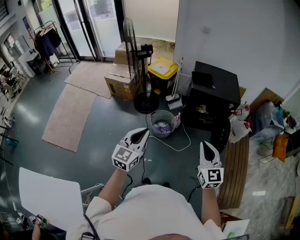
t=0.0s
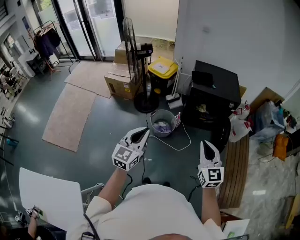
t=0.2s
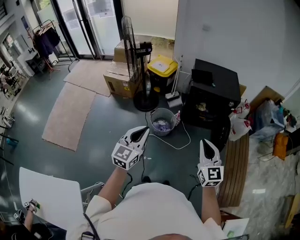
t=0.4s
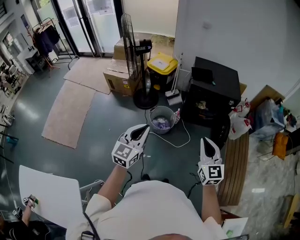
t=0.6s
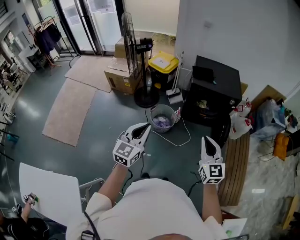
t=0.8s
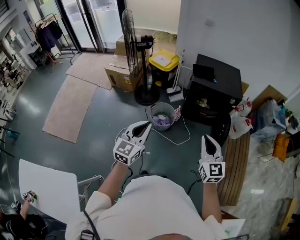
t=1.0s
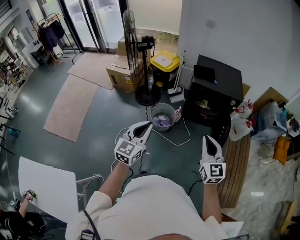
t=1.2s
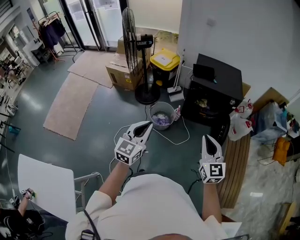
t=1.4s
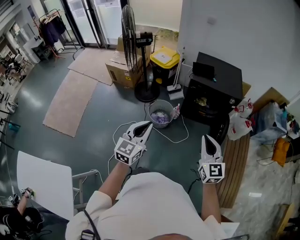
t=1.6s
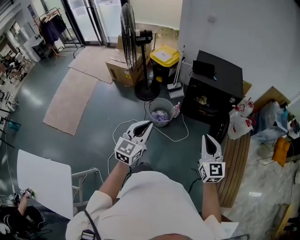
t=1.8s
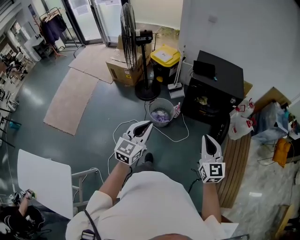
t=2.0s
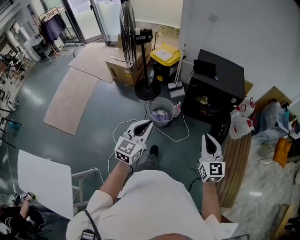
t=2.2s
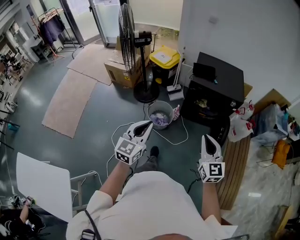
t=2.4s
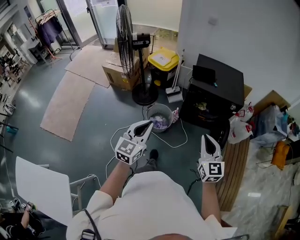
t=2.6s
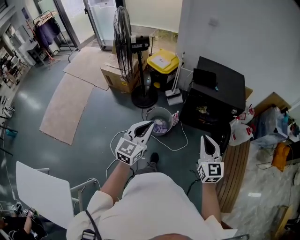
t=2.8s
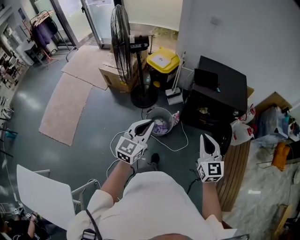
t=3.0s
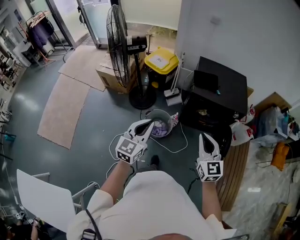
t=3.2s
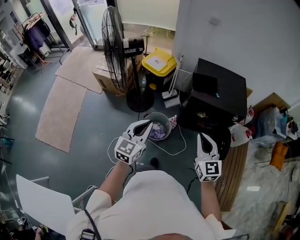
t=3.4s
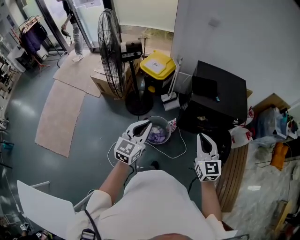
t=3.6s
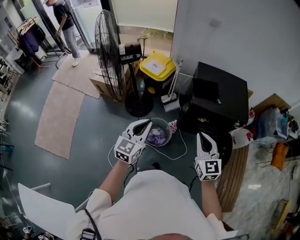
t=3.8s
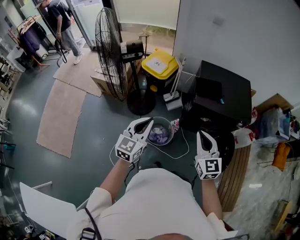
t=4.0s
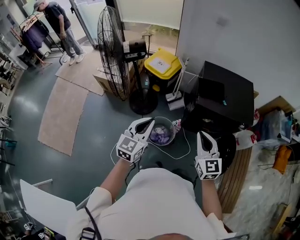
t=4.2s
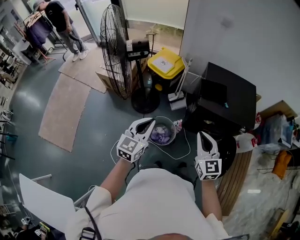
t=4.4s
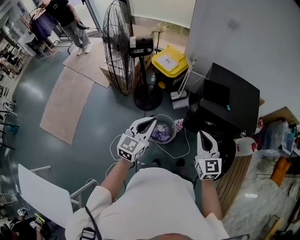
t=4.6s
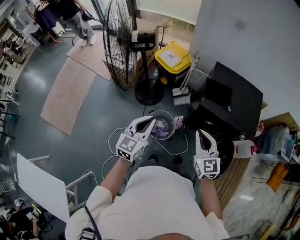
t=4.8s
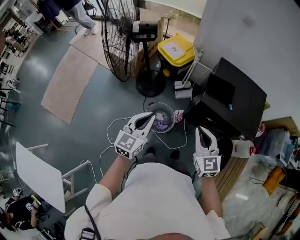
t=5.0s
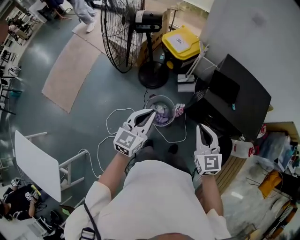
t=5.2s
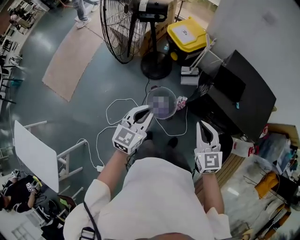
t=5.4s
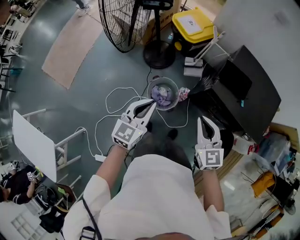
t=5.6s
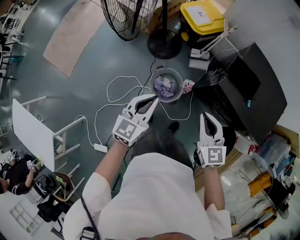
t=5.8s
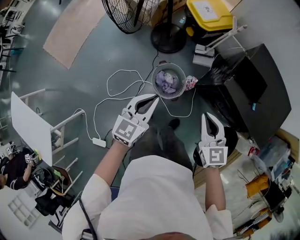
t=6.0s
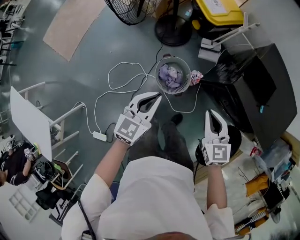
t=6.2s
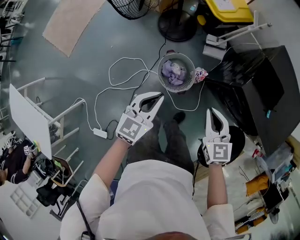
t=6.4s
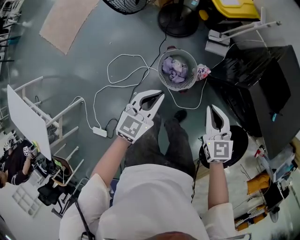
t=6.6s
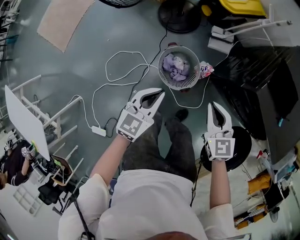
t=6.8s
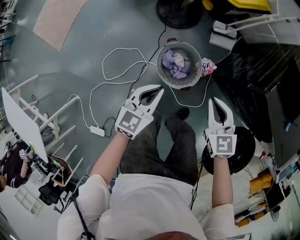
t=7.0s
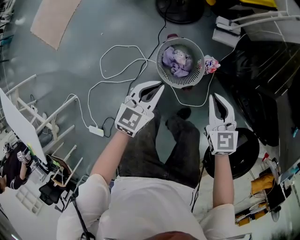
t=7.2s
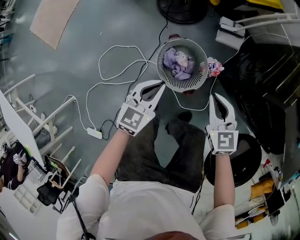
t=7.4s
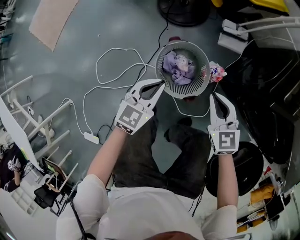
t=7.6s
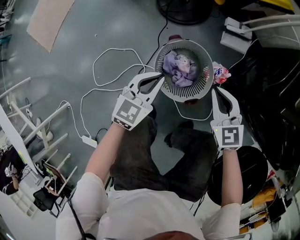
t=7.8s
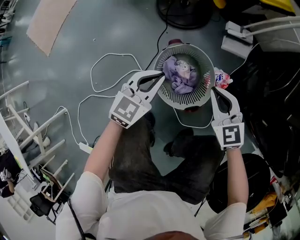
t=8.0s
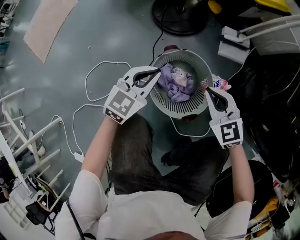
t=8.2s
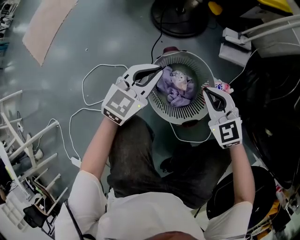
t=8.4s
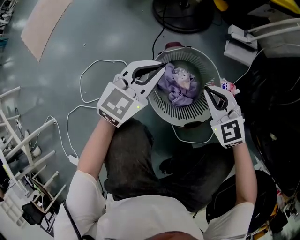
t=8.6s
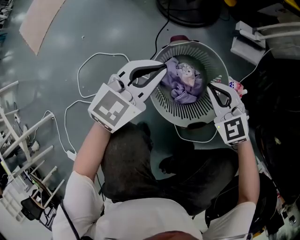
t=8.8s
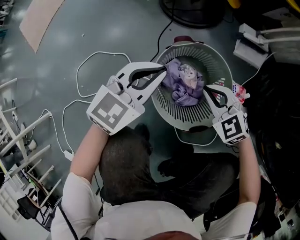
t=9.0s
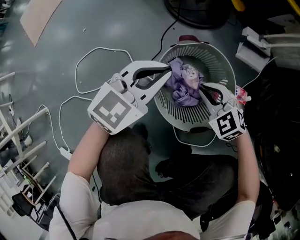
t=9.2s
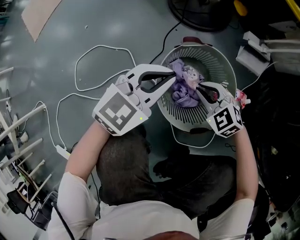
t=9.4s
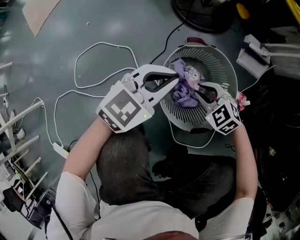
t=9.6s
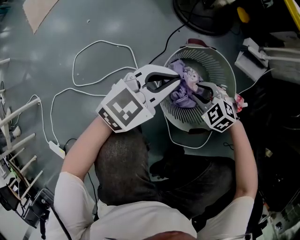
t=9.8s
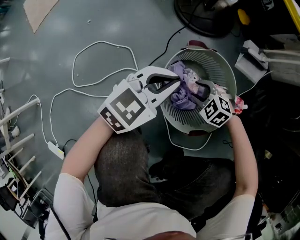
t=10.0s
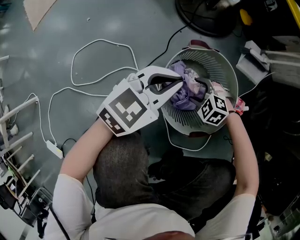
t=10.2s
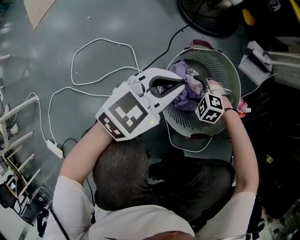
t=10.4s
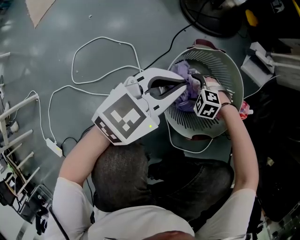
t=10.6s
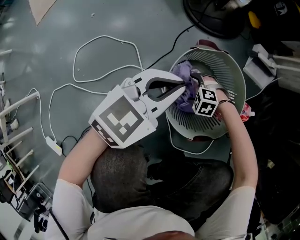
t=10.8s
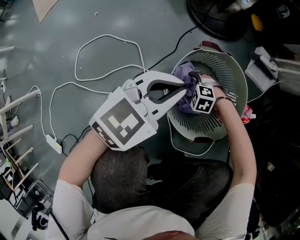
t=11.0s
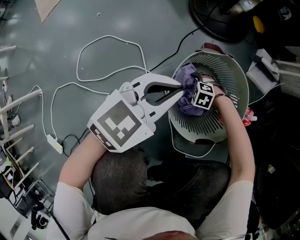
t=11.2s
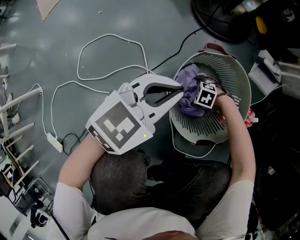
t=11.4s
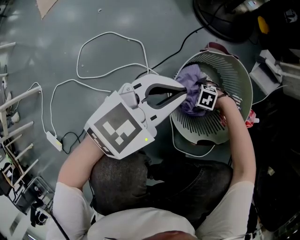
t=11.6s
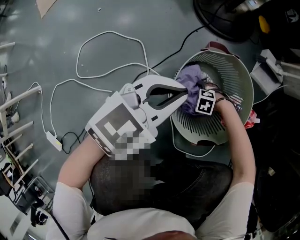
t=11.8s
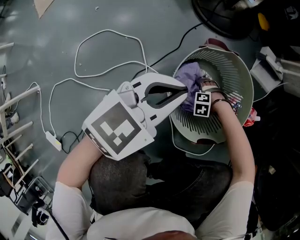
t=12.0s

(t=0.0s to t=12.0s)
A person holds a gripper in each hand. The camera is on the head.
t=0.0s - t=1.6s: Both grippers travel together to the right, approximately 10 cm.
t=1.6s - t=3.0s: The two grippers go roughly 20 cm forward.
t=3.0s - t=4.4s: The two grippers go roughly 20 cm forward.
t=4.4s - t=6.0s: The grippers both shift downward by approximately 15 cm. The left gripper rotates roughly 20 degrees; the right gripper swivels some 30 degrees.
t=6.0s - t=7.6s: Both grippers move downward, some 40 cm.
t=7.6s - t=9.0s: The left gripper shifts about 15 cm downward; the right gripper is displaced downward by about 25 cm, and swivels some 30 degrees.
t=9.0s - t=10.4s: The right gripper goes some 20 cm downward, rotates roughly 40 degrees, and opens.
t=10.4s - t=12.0s: The right gripper goes approximately 15 cm downward, and rotates about 30 degrees.

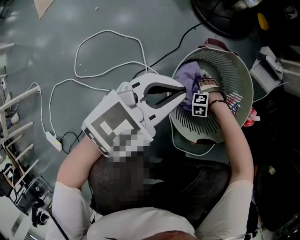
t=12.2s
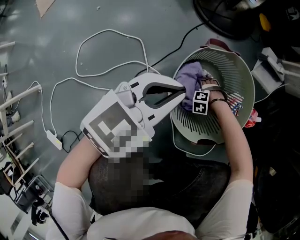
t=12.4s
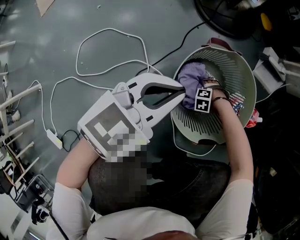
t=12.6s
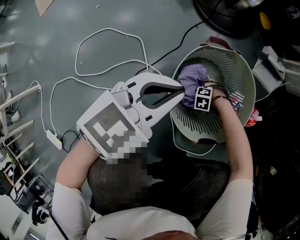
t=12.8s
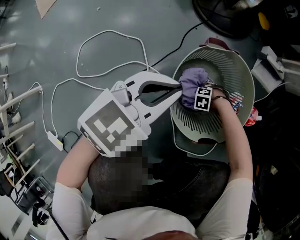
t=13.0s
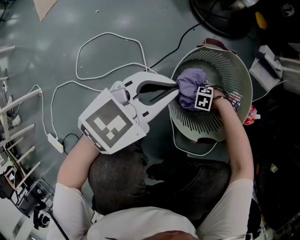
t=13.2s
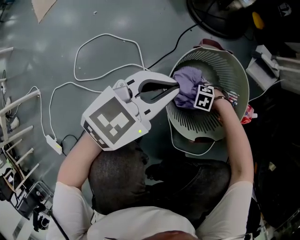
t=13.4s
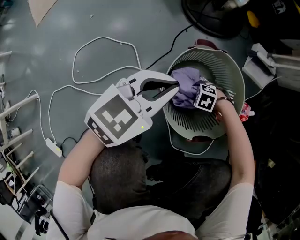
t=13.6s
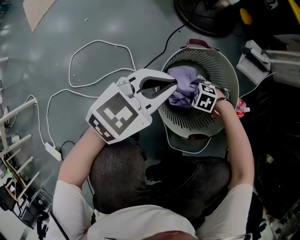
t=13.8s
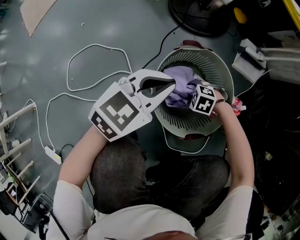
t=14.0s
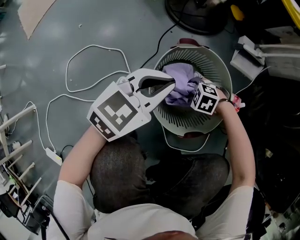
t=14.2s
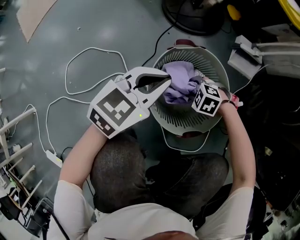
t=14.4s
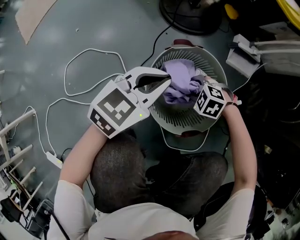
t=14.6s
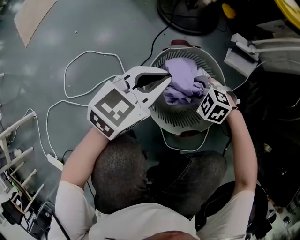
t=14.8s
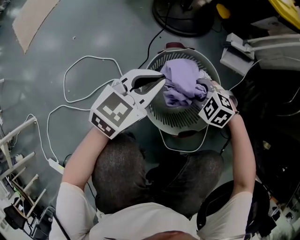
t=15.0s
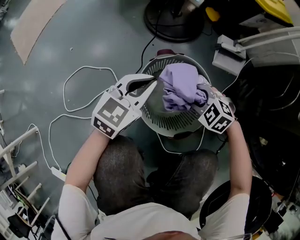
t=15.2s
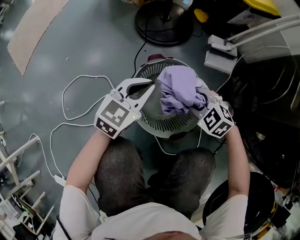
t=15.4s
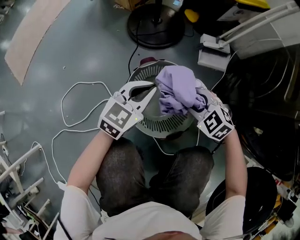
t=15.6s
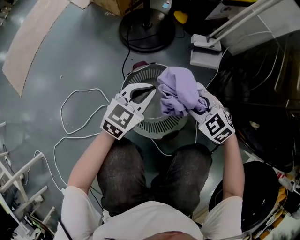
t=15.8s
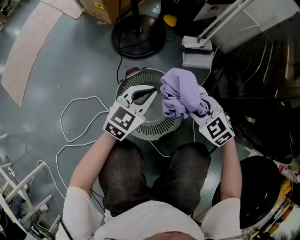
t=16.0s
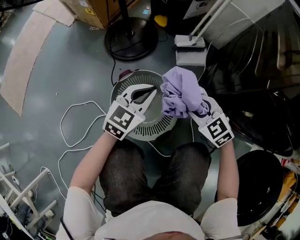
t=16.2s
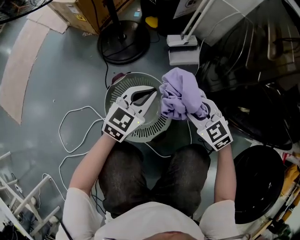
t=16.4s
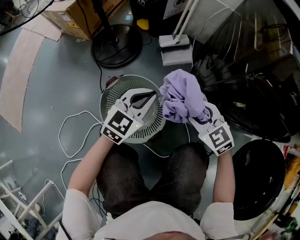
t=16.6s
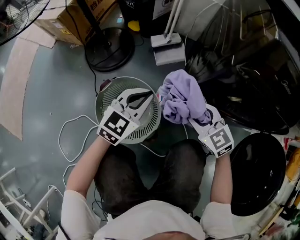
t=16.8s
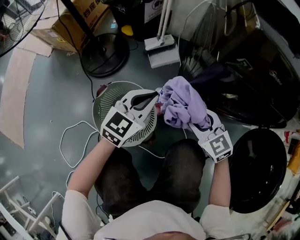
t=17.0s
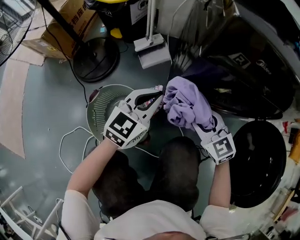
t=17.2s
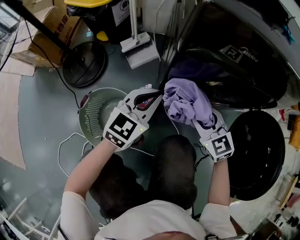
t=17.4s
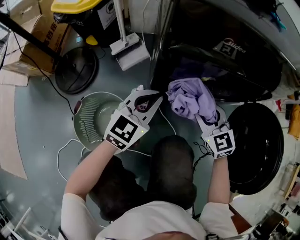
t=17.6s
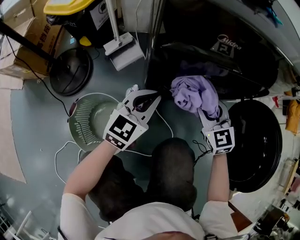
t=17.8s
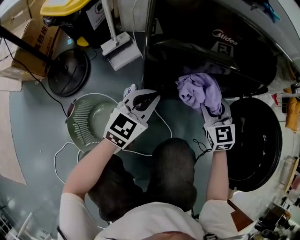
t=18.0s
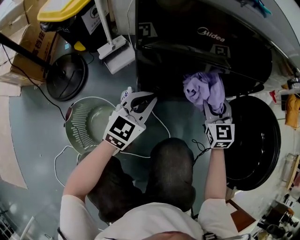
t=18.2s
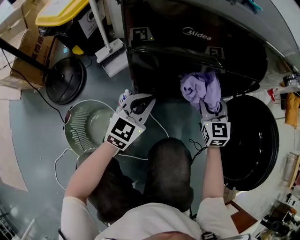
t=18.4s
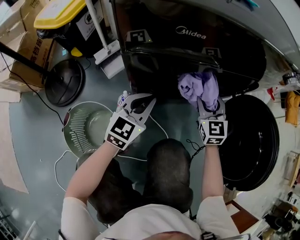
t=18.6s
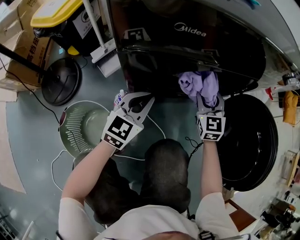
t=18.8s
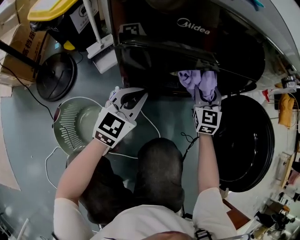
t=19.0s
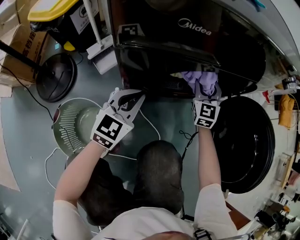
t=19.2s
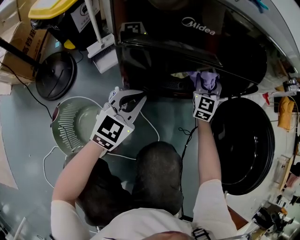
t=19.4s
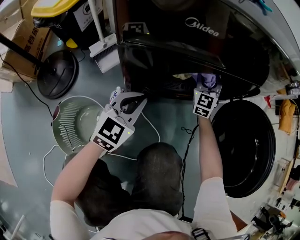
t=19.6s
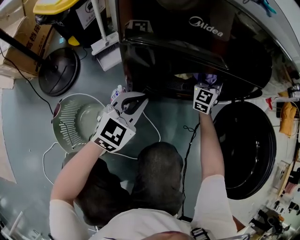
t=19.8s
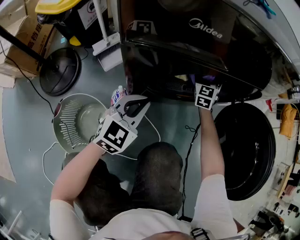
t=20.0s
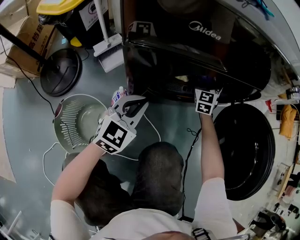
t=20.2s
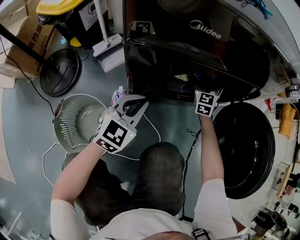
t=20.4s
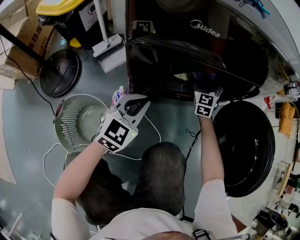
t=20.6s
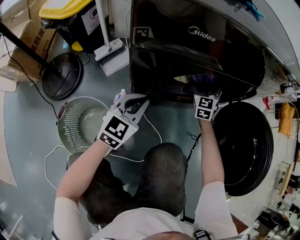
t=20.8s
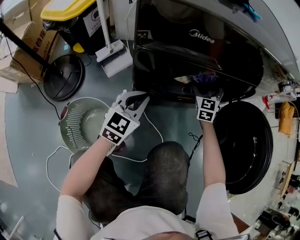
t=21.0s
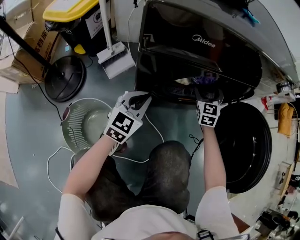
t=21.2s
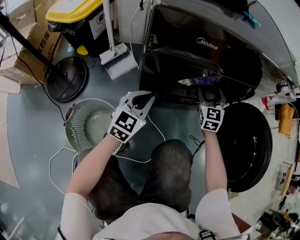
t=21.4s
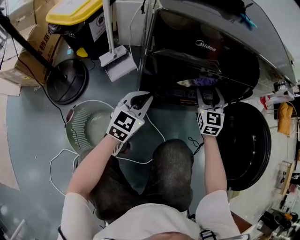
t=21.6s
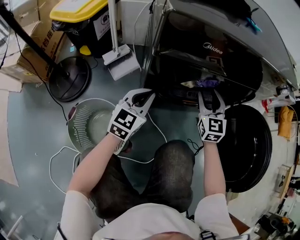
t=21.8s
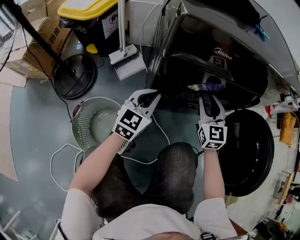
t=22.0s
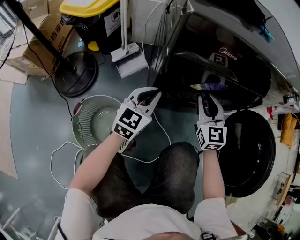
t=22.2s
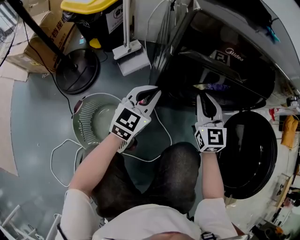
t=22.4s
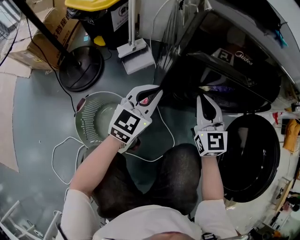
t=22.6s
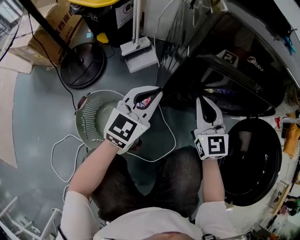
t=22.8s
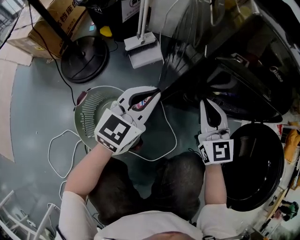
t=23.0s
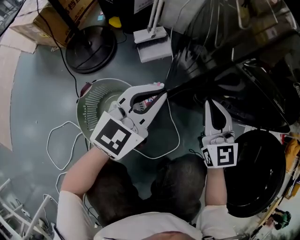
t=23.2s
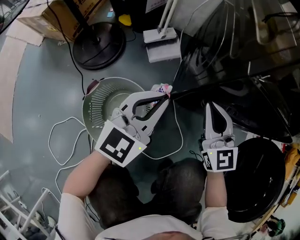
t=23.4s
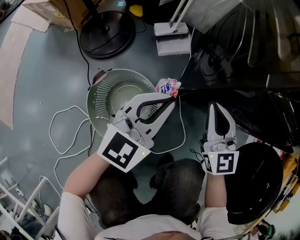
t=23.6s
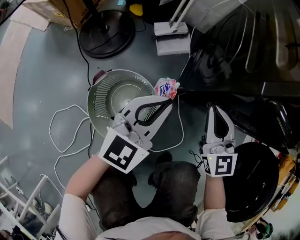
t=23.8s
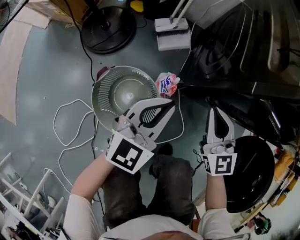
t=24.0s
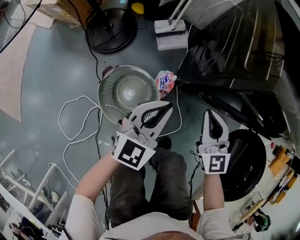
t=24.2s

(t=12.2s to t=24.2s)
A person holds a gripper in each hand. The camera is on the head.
t=12.2s - t=13.8s: The right gripper goes roughly 10 cm upward, turns by approximately 30 degrees, and closes its fingers.
t=13.8s - t=15.2s: The right gripper travels upward by about 20 cm, and changes its angle by some 30 degrees.
t=15.2s - t=16.6s: The left gripper changes place by roughly 20 cm, and turns by some 30 degrees, while the right gripper ends up some 25 cm from where it was, and rotates roughly 50 degrees.
t=16.6s - t=18.2s: The right gripper shifts by about 30 cm, and rotates approximately 60 degrees. Meanwhile the left gripper ends up some 20 cm from where it was, and changes its angle by some 20 degrees.
t=18.2s - t=19.8s: The right gripper shifts some 15 cm forward, and changes its angle by some 30 degrees.
t=19.8s - t=21.2s: The right gripper moves backward, about 5 cm.
t=21.2s - t=22.6s: The right gripper travels to the left, backward and upward by approximately 20 cm, changes its angle by about 30 degrees, and closes up. The left gripper travels to the left by some 5 cm.
t=22.6s - t=24.2s: The right gripper moves to the left and upward, roughly 10 cm. The left gripper travels to the left, upward and backward by about 15 cm.
